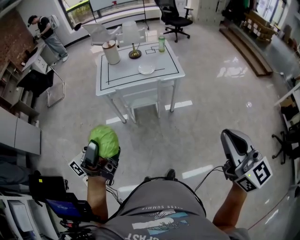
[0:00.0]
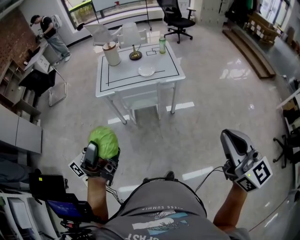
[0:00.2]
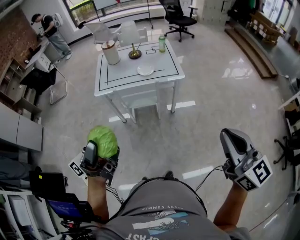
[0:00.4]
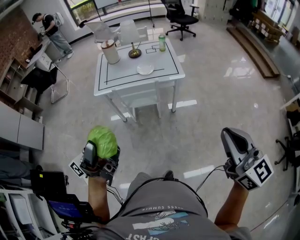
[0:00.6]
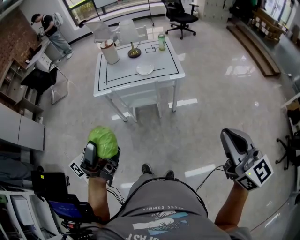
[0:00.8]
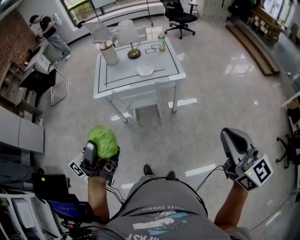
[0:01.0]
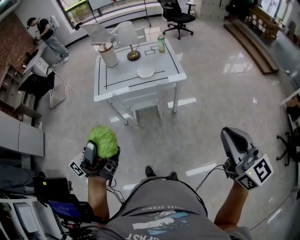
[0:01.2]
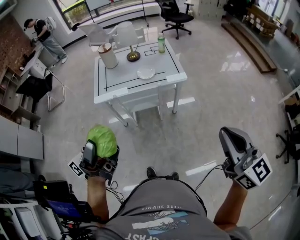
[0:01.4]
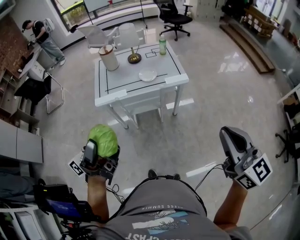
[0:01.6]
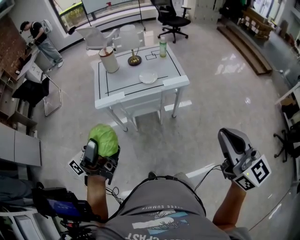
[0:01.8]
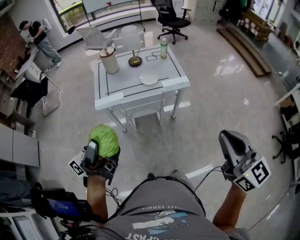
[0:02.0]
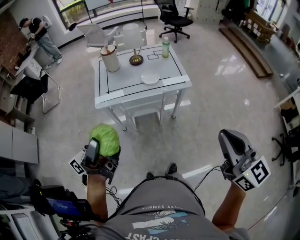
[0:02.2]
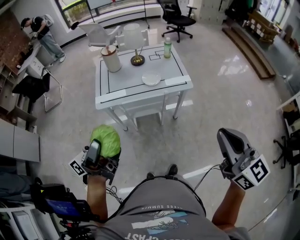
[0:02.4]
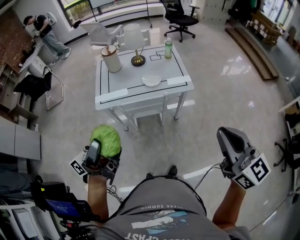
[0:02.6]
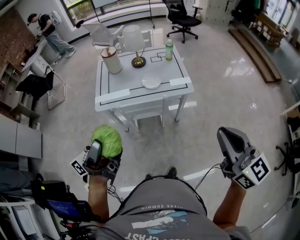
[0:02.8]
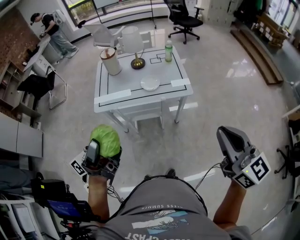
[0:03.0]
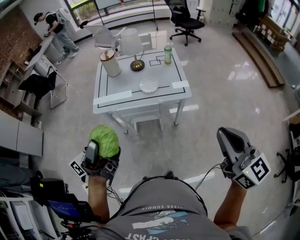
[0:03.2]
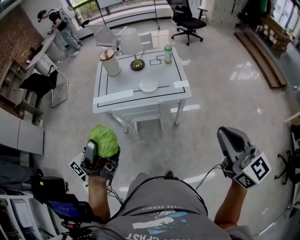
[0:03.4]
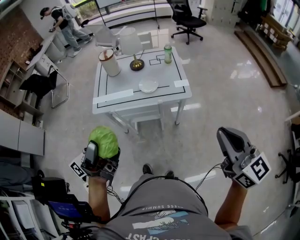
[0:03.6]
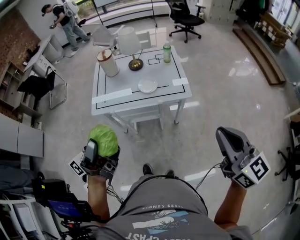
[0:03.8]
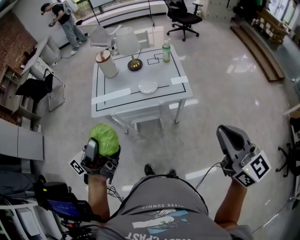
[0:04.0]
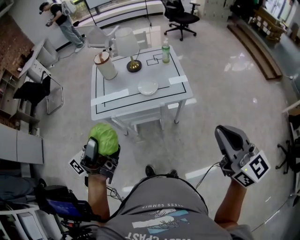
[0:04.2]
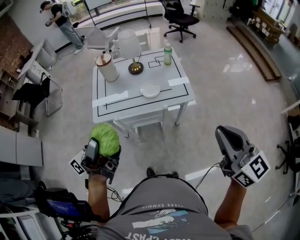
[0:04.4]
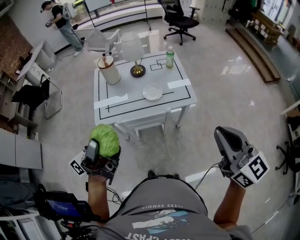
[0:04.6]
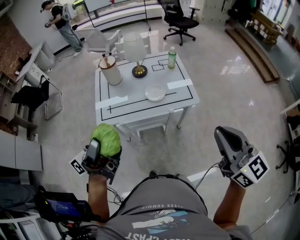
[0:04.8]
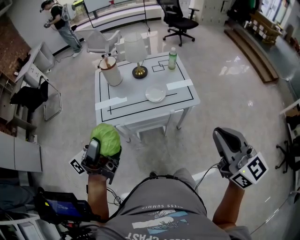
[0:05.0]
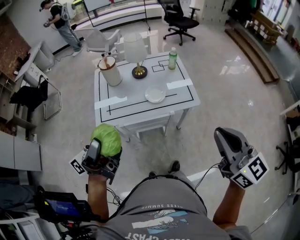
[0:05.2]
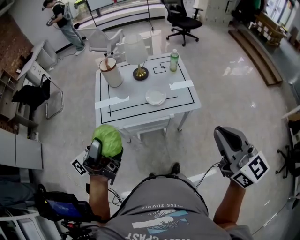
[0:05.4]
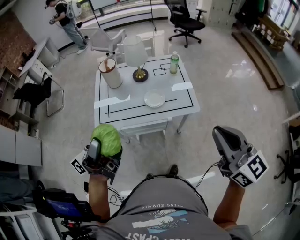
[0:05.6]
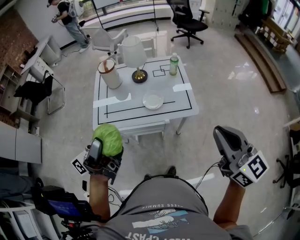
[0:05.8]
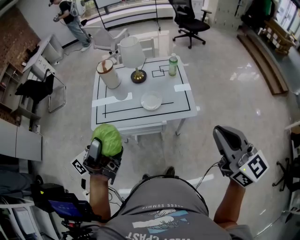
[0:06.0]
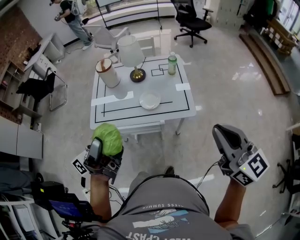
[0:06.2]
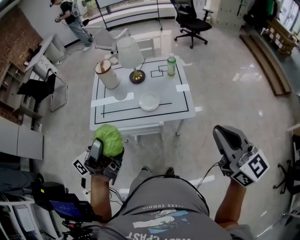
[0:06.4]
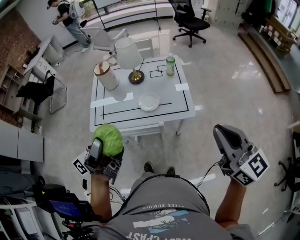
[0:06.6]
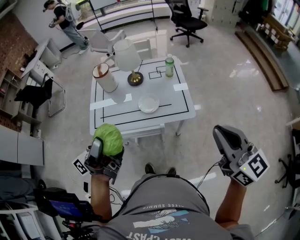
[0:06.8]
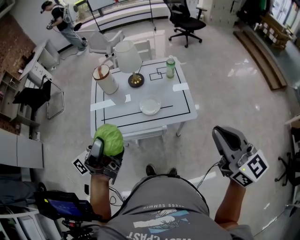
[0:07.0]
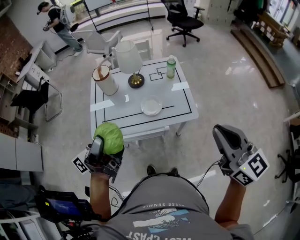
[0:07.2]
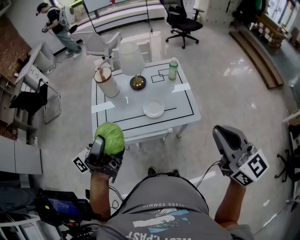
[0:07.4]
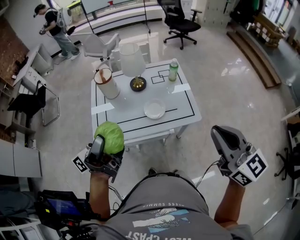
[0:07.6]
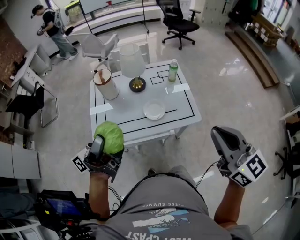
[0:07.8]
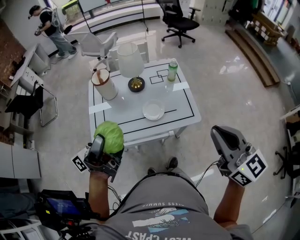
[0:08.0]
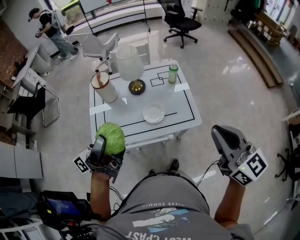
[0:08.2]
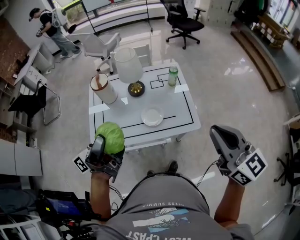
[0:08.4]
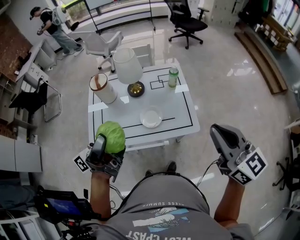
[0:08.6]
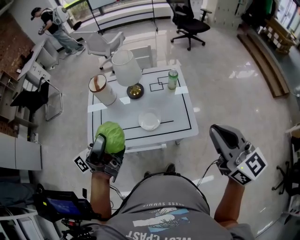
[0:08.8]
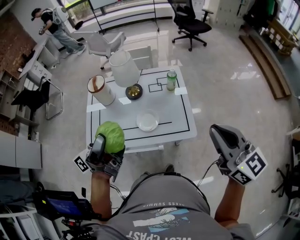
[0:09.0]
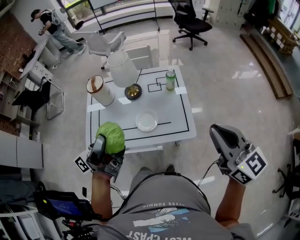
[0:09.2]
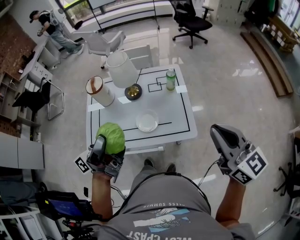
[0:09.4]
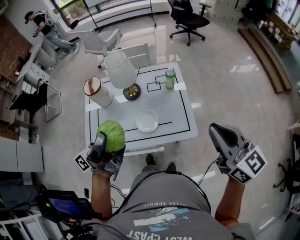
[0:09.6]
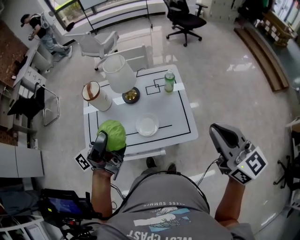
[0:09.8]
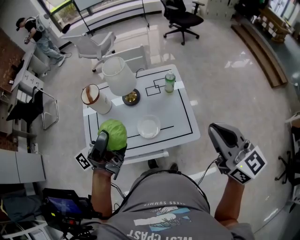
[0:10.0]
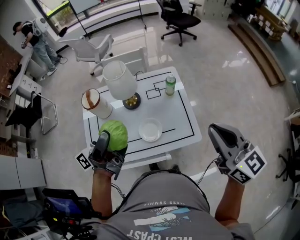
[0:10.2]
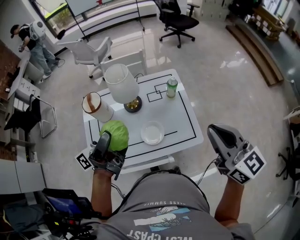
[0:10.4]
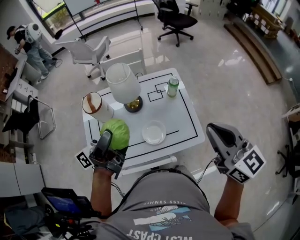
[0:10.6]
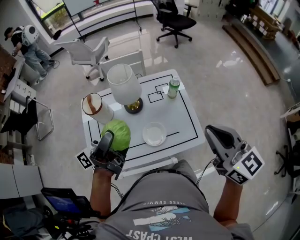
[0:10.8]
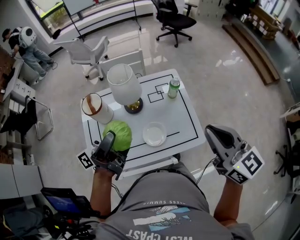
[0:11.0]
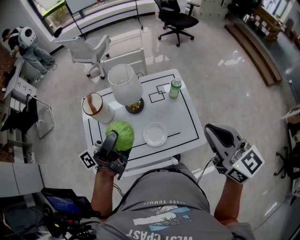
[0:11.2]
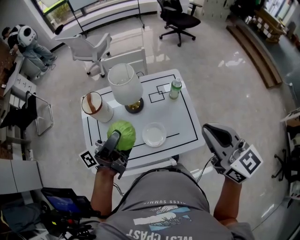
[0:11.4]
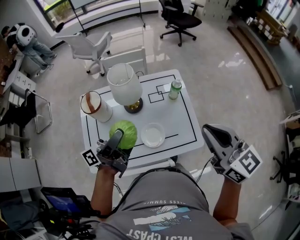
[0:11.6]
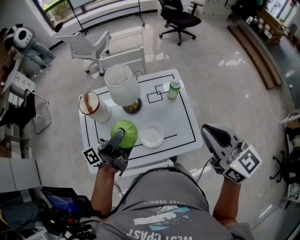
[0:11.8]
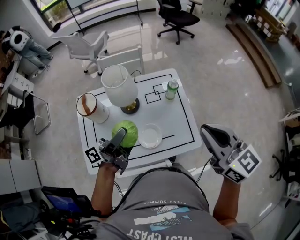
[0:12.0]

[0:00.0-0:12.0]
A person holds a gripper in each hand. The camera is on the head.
0:00.0 to 0:01.6: Both grippers travel together forward, approximately 10 cm.
0:01.6 to 0:03.0: Both grippers travel together forward, about 10 cm.
0:03.0 to 0:04.4: Both grippers move forward, some 10 cm.
0:04.4 to 0:06.0: The grippers both shift forward by some 10 cm.
0:06.0 to 0:07.6: The left gripper is displaced forward and to the left by approximately 10 cm. Meanwhile the right gripper is displaced to the left by approximately 5 cm.
0:07.6 to 0:09.0: The two grippers go some 15 cm forward and to the right.
0:09.0 to 0:10.4: The right gripper moves forward and to the left, some 10 cm. The left gripper heads forward, covering some 15 cm.
0:10.4 to 0:12.0: The left gripper travels downward and forward by approximately 10 cm, while the right gripper moves roughly 5 cm.

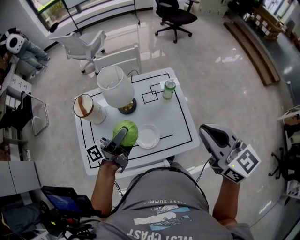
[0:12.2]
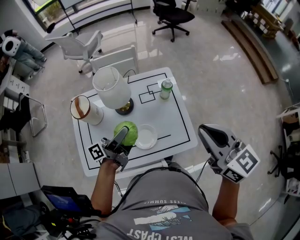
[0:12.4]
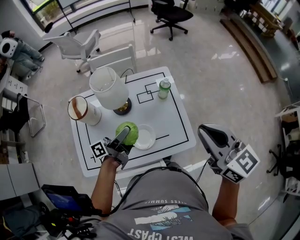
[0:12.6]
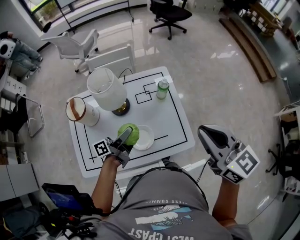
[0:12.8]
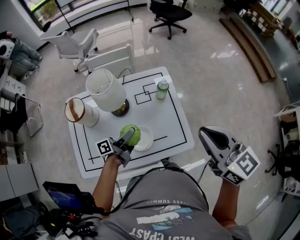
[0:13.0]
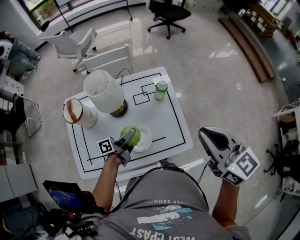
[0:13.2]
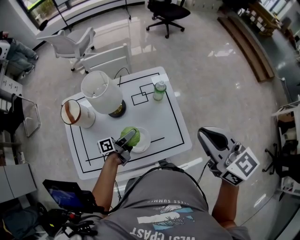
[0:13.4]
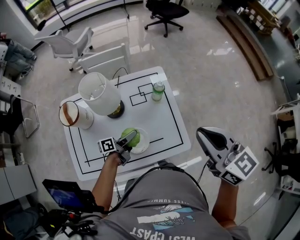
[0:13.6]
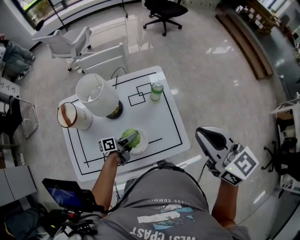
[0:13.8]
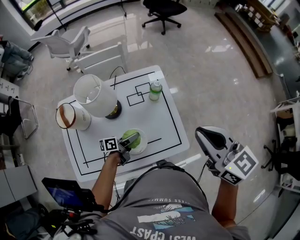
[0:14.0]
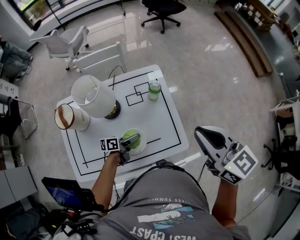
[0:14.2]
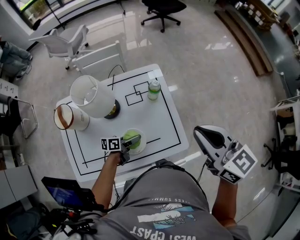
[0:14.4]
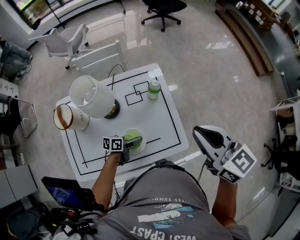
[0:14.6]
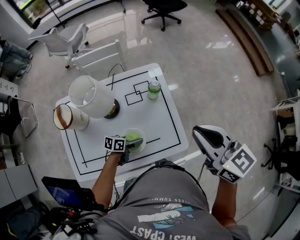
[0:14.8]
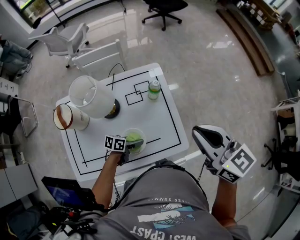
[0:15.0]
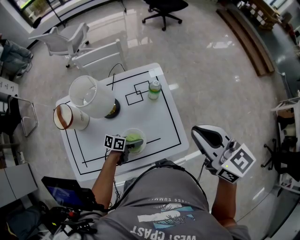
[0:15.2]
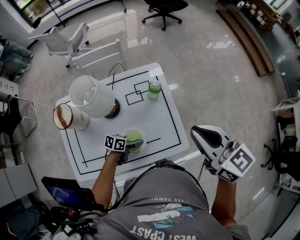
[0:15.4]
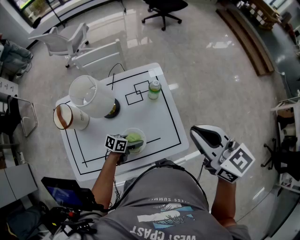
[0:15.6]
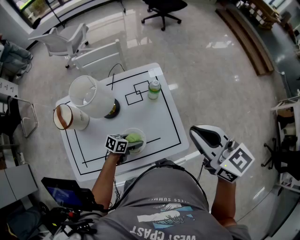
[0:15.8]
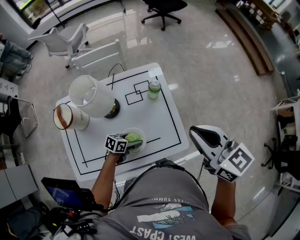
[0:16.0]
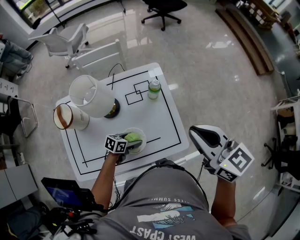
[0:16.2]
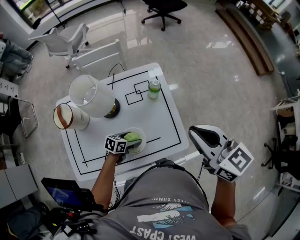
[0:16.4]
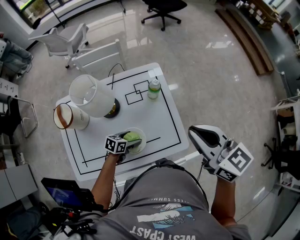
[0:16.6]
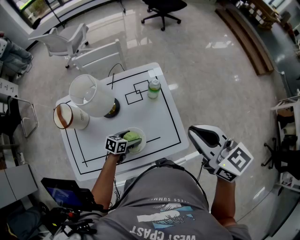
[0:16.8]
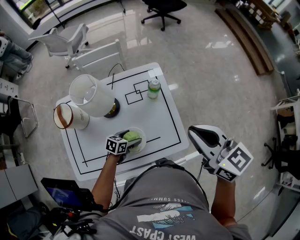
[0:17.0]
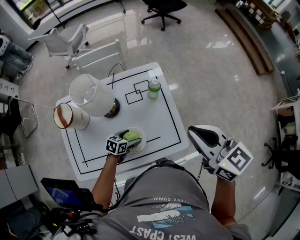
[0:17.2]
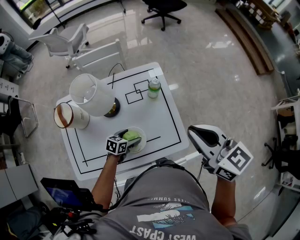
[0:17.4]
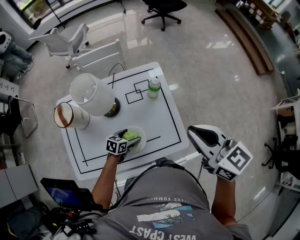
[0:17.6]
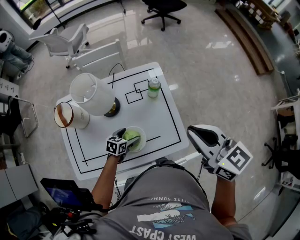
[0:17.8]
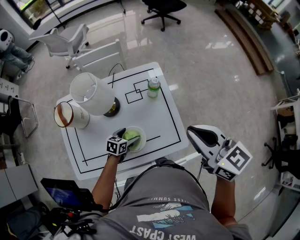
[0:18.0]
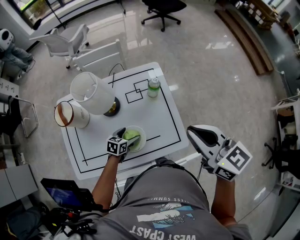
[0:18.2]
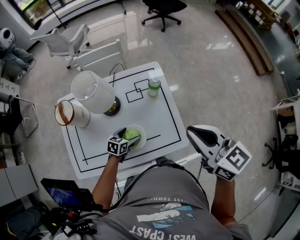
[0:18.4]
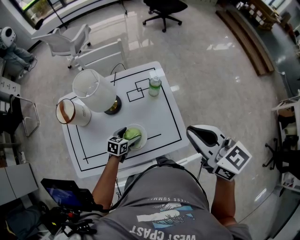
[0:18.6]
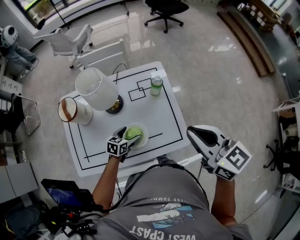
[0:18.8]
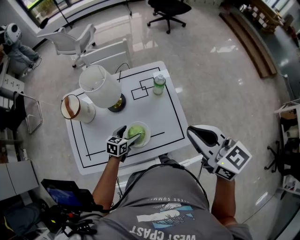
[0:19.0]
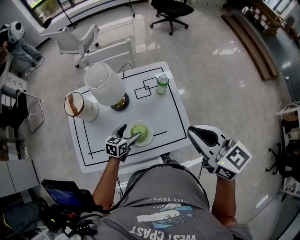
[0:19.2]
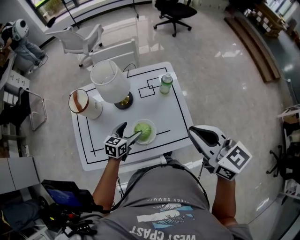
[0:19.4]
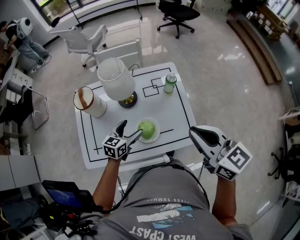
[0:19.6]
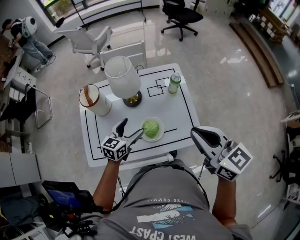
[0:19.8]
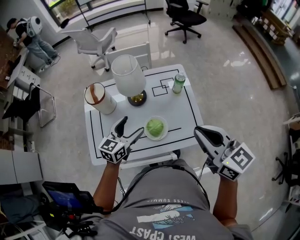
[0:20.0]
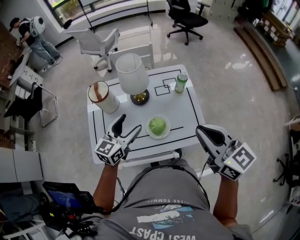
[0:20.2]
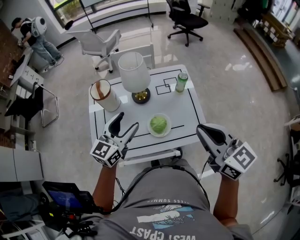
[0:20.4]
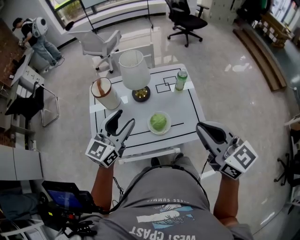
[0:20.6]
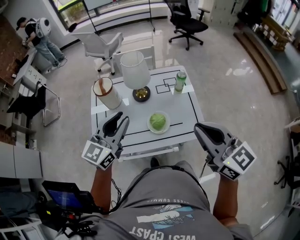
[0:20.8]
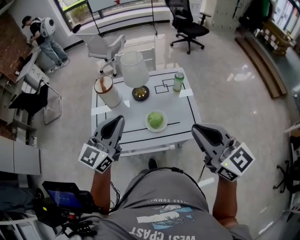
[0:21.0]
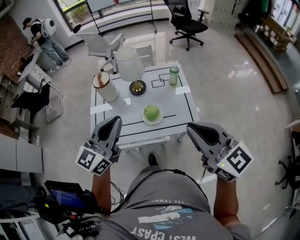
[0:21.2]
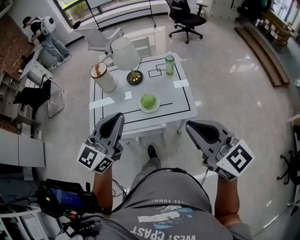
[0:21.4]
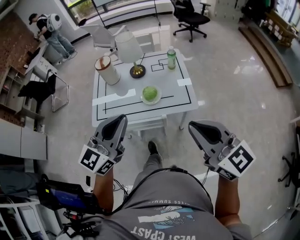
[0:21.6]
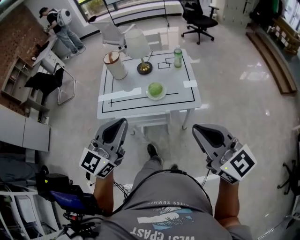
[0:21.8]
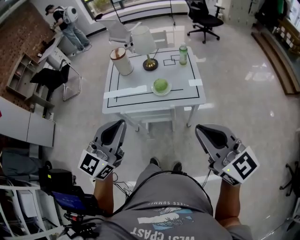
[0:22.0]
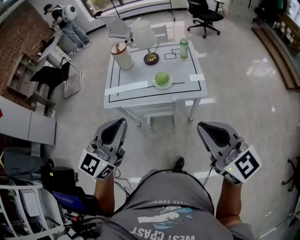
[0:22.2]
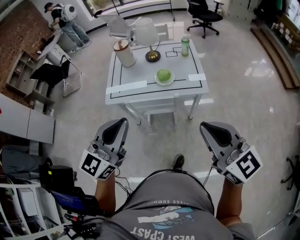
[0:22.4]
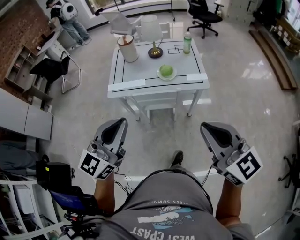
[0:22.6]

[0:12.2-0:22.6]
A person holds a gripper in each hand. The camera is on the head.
0:12.2 to 0:13.6: The right gripper shifts by some 5 cm, while the left gripper goes roughly 20 cm downward, and turns by some 30 degrees.
0:13.6 to 0:15.2: The left gripper moves downward, roughly 10 cm, and swivels about 40 degrees.
0:15.2 to 0:16.6: The grippers stay close to where they were, moving slightly.
0:16.6 to 0:18.2: The grippers stay close to where they were, moving slightly.
0:18.2 to 0:19.6: The left gripper is displaced upward and to the left by approximately 15 cm, and turns by roughly 20 degrees, while the right gripper shifts some 10 cm backward and to the left.
0:19.6 to 0:21.2: The left gripper travels upward and backward by approximately 35 cm, angles its fingers upward, by approximately 30 degrees, and closes; the right gripper moves backward, roughly 20 cm.
0:21.2 to 0:22.6: The two grippers go approximately 30 cm backward.

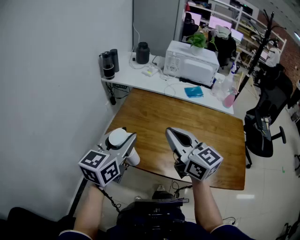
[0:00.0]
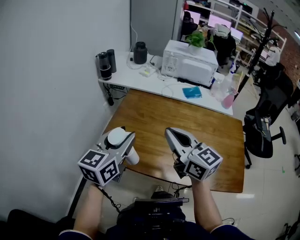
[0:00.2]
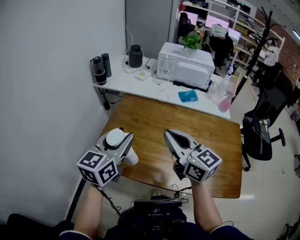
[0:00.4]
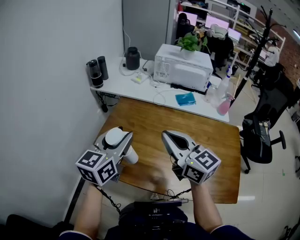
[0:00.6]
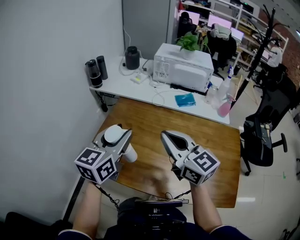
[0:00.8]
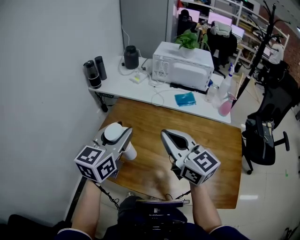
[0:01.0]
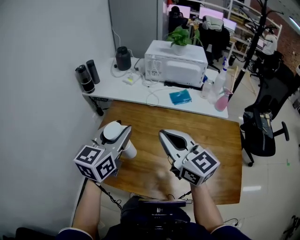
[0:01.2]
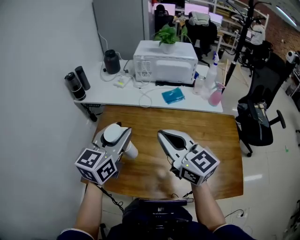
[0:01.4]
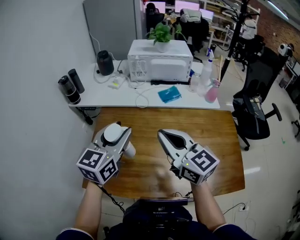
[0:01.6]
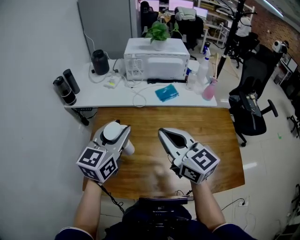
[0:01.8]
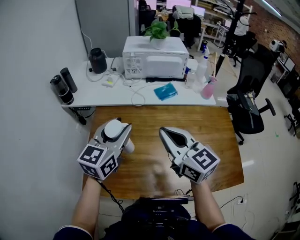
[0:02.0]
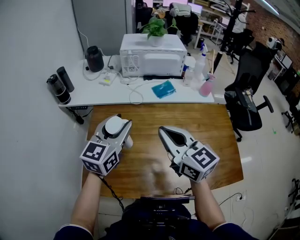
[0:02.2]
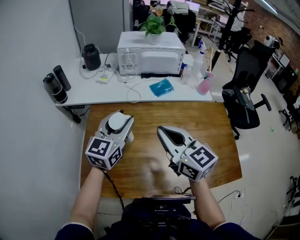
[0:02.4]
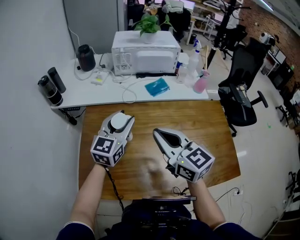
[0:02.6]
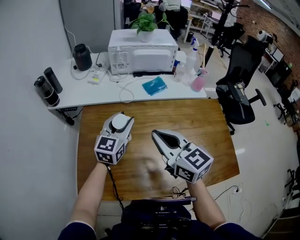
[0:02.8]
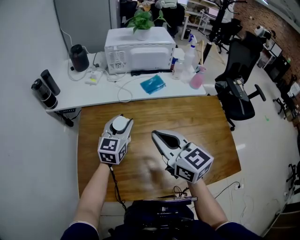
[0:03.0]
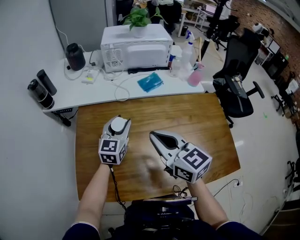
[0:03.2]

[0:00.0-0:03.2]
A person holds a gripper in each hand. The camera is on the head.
0:00.0 to 0:01.6: Both grippers move forward and to the right, about 20 cm.
0:01.6 to 0:03.2: The left gripper moves downward and forward, some 20 cm. The right gripper shifts approximately 5 cm downward.
